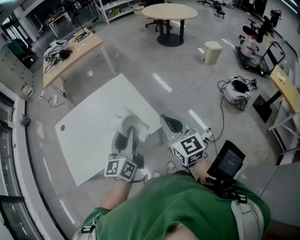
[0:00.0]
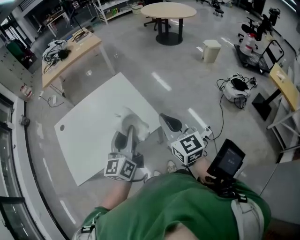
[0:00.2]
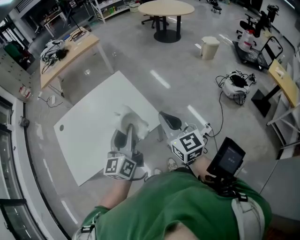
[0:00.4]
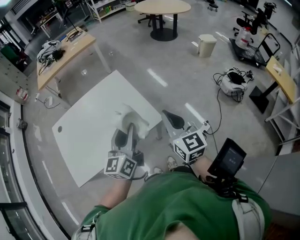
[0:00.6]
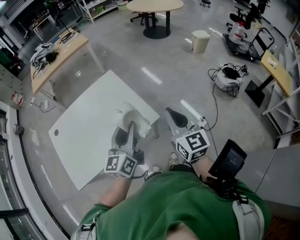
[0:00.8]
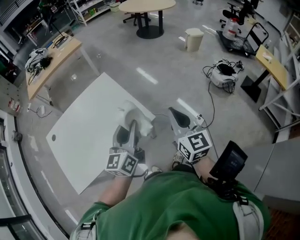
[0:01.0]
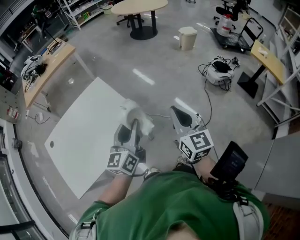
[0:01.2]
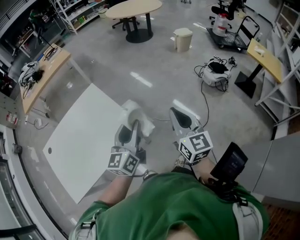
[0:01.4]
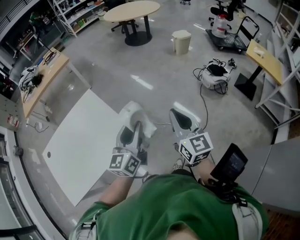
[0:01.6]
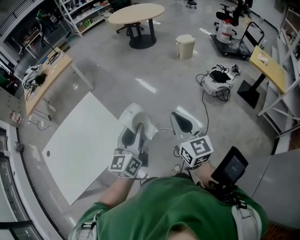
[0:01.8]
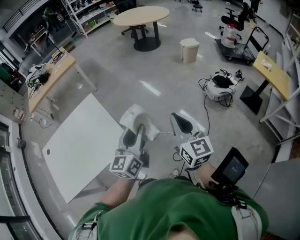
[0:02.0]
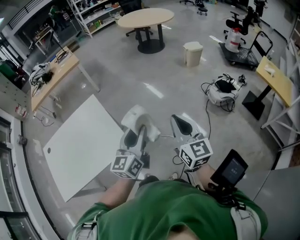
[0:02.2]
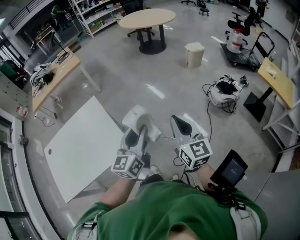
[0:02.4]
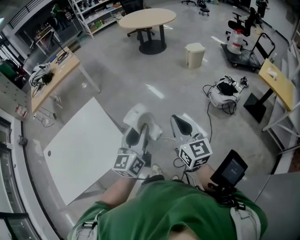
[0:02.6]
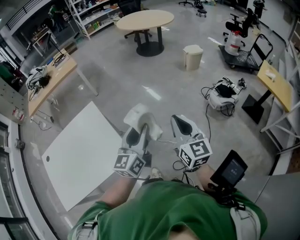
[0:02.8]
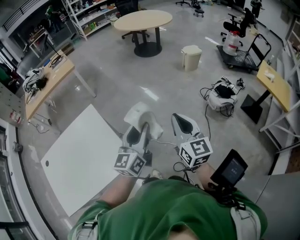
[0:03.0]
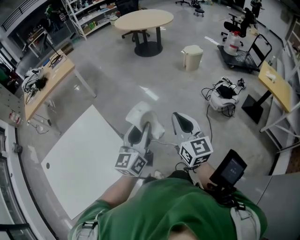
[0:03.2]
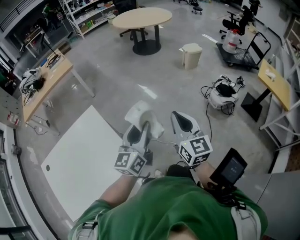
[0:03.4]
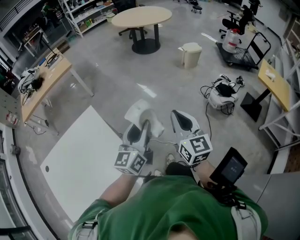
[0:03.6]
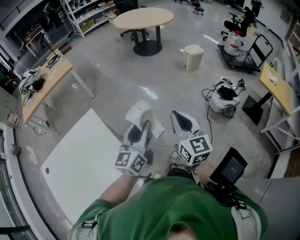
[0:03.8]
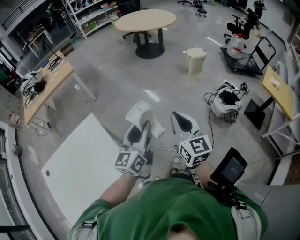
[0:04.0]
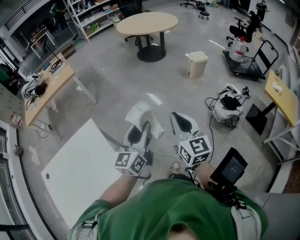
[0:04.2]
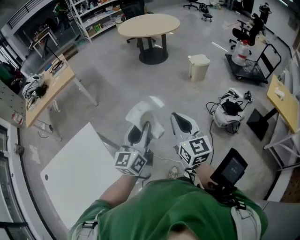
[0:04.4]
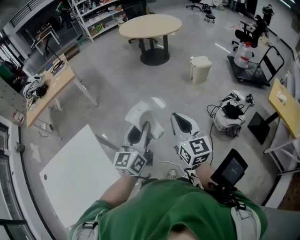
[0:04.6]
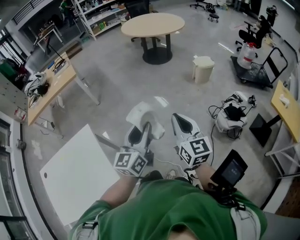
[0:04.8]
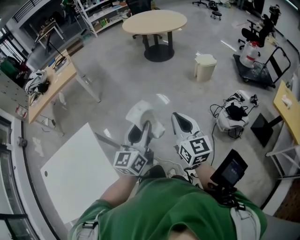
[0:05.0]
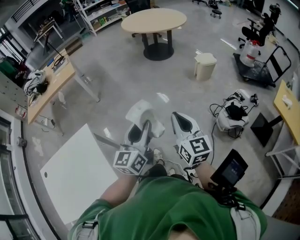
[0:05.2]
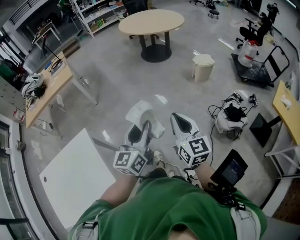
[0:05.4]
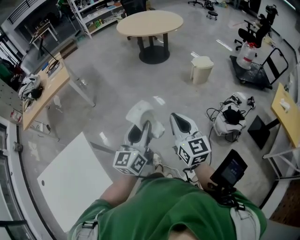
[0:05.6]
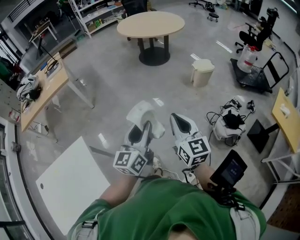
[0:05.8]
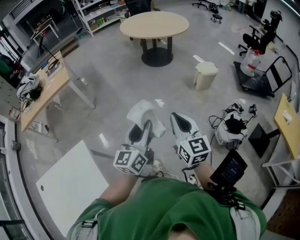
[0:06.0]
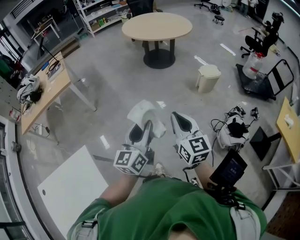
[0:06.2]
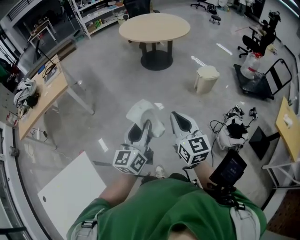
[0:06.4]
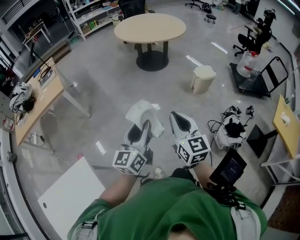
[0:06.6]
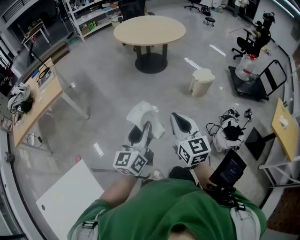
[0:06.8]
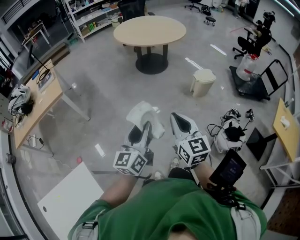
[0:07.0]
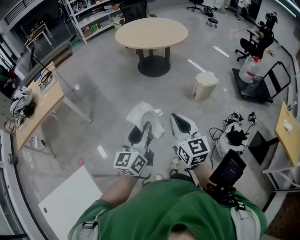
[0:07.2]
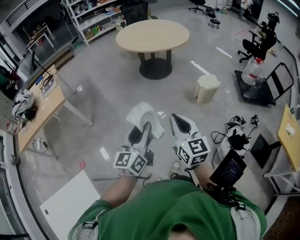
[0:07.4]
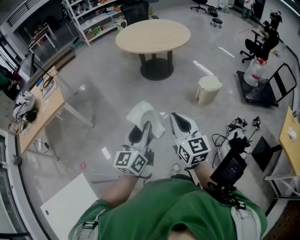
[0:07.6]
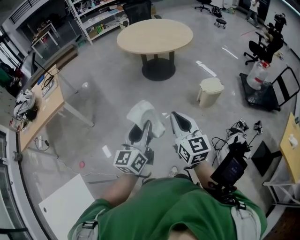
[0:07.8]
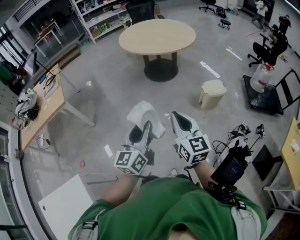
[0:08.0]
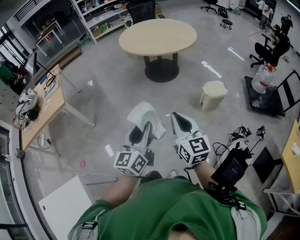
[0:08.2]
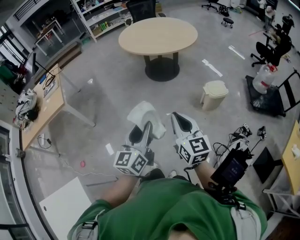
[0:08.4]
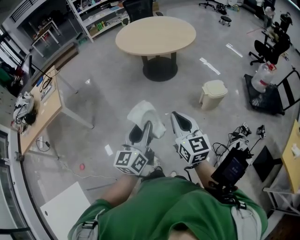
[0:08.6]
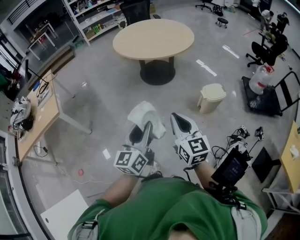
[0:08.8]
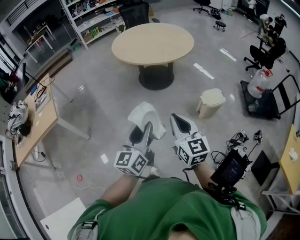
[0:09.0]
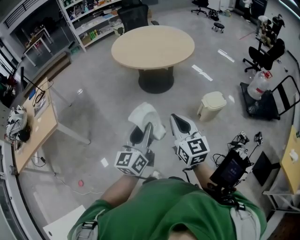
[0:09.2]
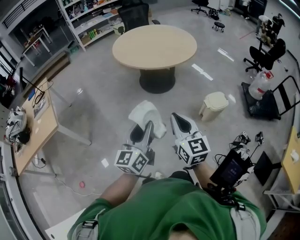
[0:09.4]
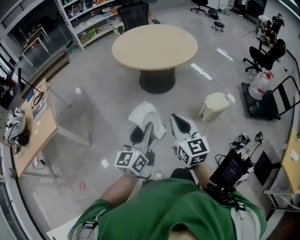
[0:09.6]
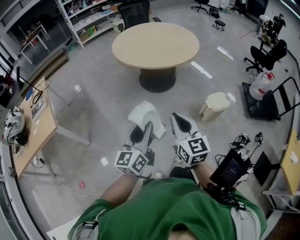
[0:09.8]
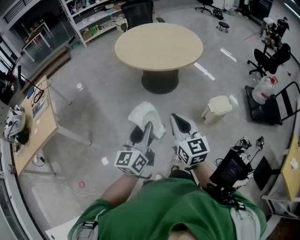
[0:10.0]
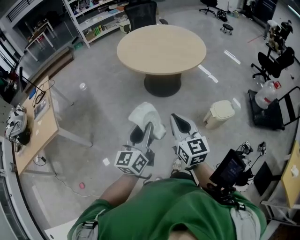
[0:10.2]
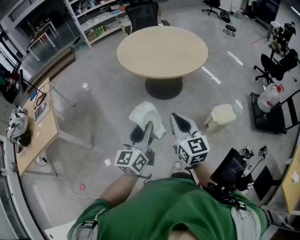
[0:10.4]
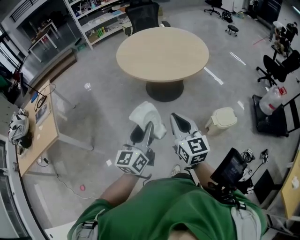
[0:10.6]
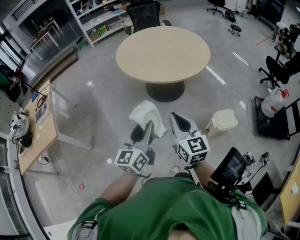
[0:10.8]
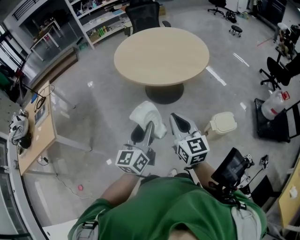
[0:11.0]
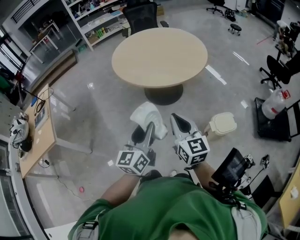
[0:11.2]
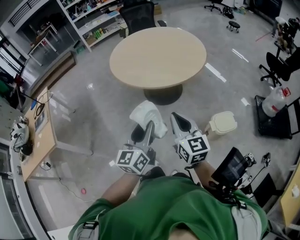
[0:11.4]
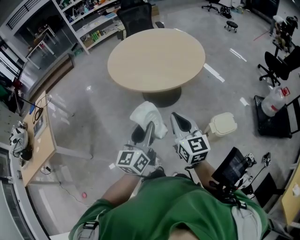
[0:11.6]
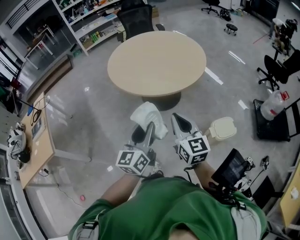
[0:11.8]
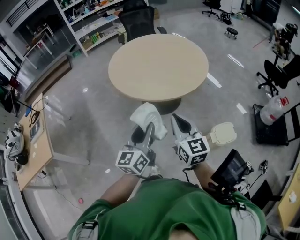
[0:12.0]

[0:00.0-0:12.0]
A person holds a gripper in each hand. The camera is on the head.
0:00.0 to 0:01.6: Both grippers travel together to the right, roughly 20 cm. The right gripper swivels about 20 degrees.
0:01.6 to 0:03.0: The right gripper moves forward, approximately 15 cm; the left gripper is displaced forward and to the right by roughly 15 cm.
0:03.0 to 0:04.4: Both grippers travel together forward, about 15 cm.
0:04.4 to 0:06.0: Both grippers travel together forward, approximately 20 cm.
0:06.0 to 0:07.6: The grippers both shift forward by about 20 cm.
0:07.6 to 0:09.0: Both grippers move forward, approximately 20 cm.
0:09.0 to 0:10.4: Both grippers move forward, roughly 20 cm.
0:10.4 to 0:12.0: The two grippers go some 20 cm forward and to the right.

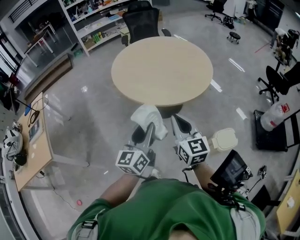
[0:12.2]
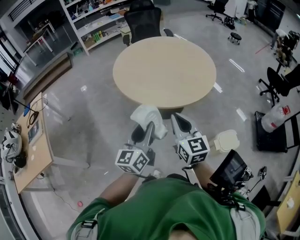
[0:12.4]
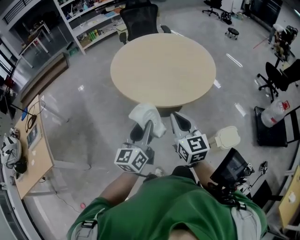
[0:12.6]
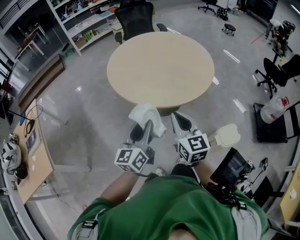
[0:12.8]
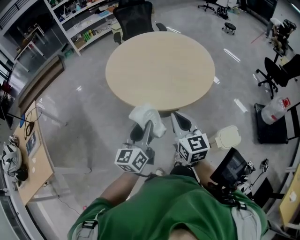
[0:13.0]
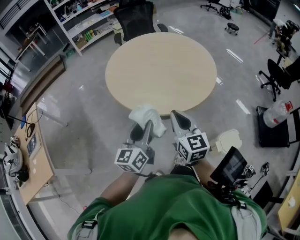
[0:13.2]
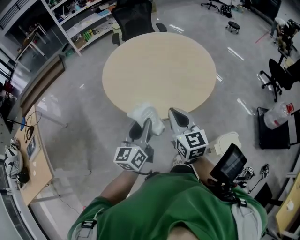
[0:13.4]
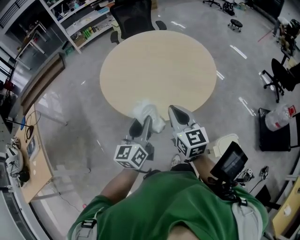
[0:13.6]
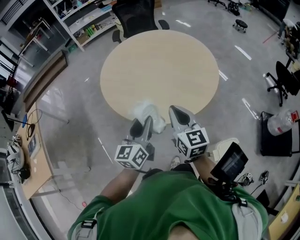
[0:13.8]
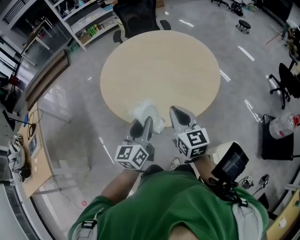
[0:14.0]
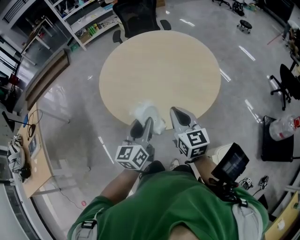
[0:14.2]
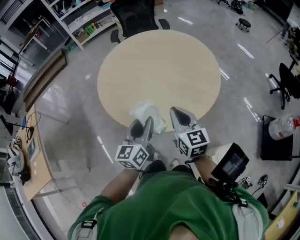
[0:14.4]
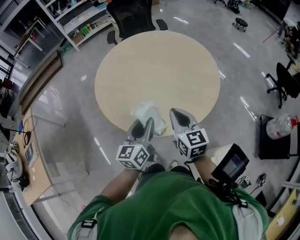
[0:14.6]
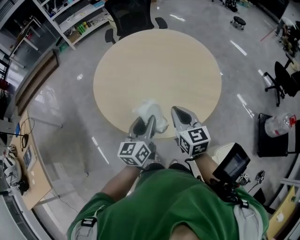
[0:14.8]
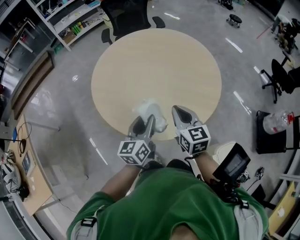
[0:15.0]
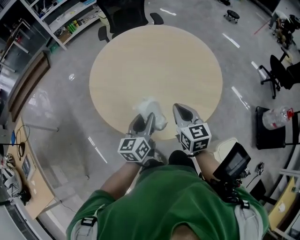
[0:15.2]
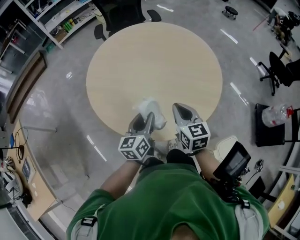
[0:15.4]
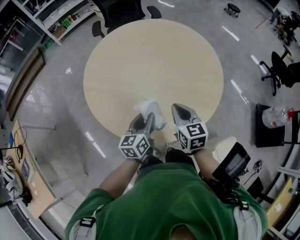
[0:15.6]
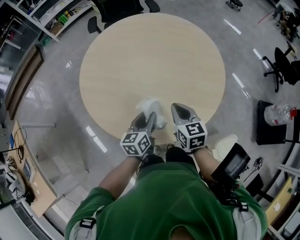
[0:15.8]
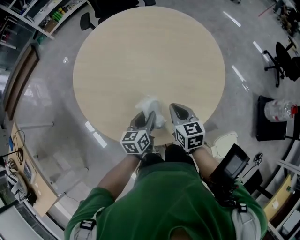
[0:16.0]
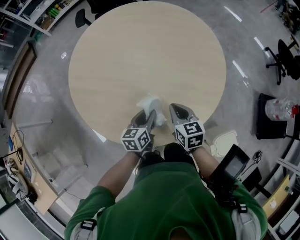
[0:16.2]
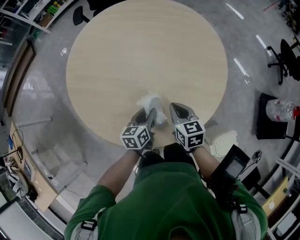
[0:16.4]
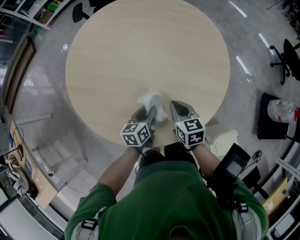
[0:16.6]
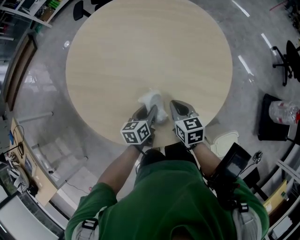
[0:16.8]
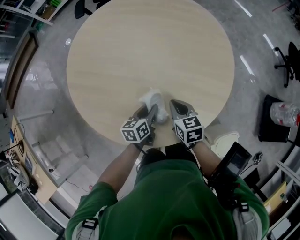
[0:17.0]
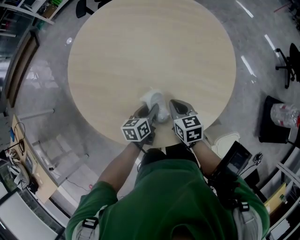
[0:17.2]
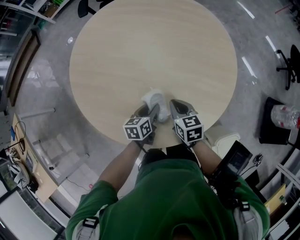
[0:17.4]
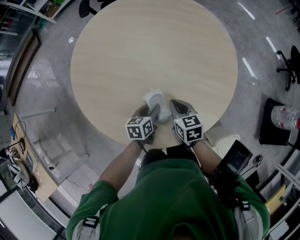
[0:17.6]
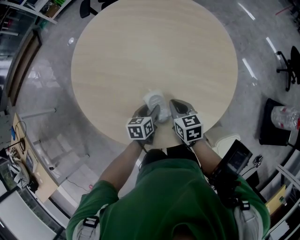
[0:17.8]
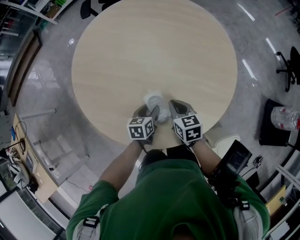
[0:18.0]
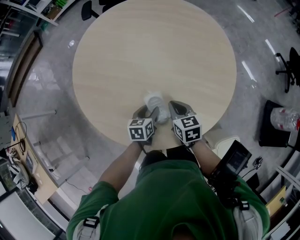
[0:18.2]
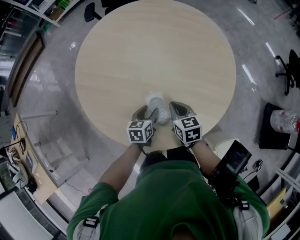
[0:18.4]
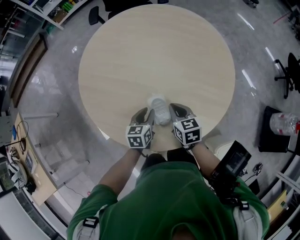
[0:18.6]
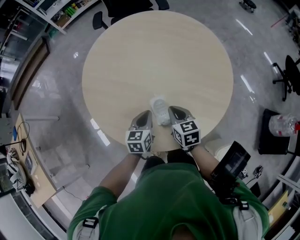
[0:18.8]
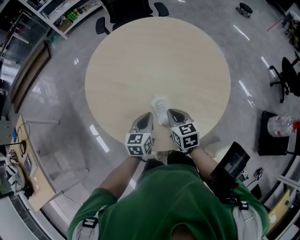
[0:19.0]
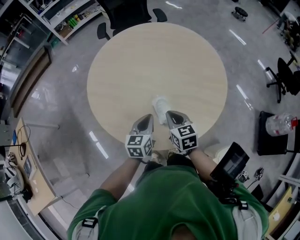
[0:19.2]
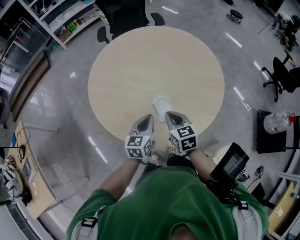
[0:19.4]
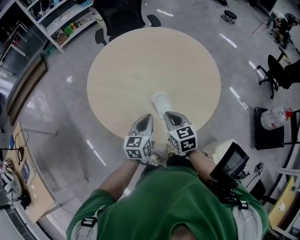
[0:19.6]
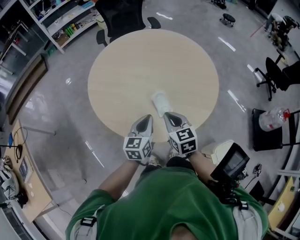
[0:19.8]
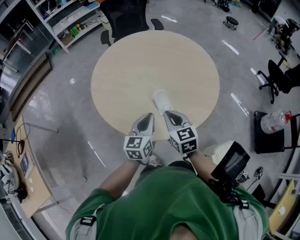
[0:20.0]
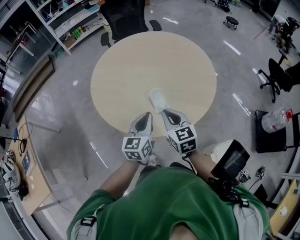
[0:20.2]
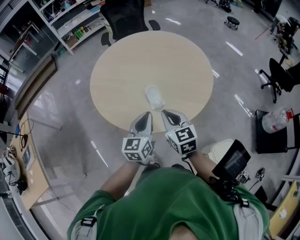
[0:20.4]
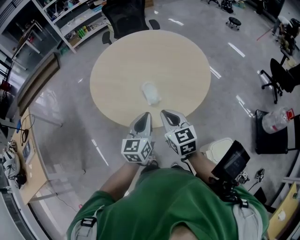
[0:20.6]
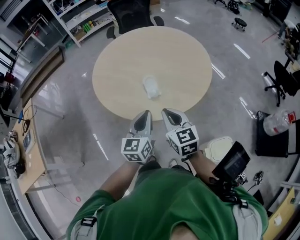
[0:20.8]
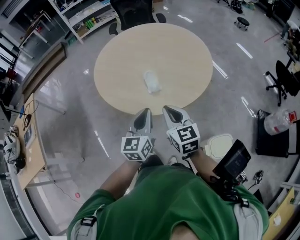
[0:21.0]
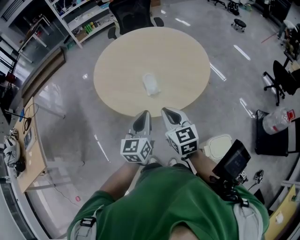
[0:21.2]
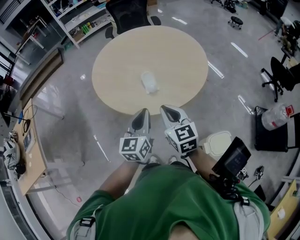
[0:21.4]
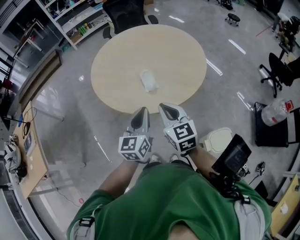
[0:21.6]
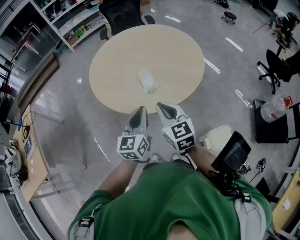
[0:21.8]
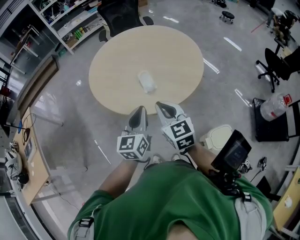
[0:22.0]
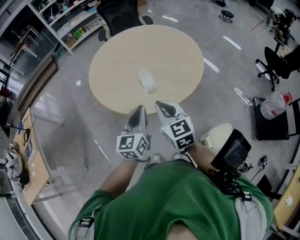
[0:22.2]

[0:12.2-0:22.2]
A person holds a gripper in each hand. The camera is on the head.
0:12.2 to 0:13.6: Both grippers travel together forward, approximately 20 cm.
0:13.6 to 0:15.0: The grippers both shift forward by some 15 cm.
0:15.0 to 0:16.4: Both grippers move downward and forward, approximately 20 cm. The left gripper swivels approximately 30 degrees. The right gripper swivels about 20 degrees.
0:16.4 to 0:18.0: The right gripper changes place by roughly 5 cm. The left gripper travels downward by about 5 cm.
0:18.0 to 0:19.4: The left gripper is displaced upward by roughly 15 cm, swivels some 30 degrees, and closes its fingers. The right gripper moves upward, backward and to the left, about 15 cm.
0:19.4 to 0:20.8: The left gripper moves backward, upward and to the right, about 20 cm, while the right gripper travels backward and upward by about 20 cm.
0:20.8 to 0:22.2: The right gripper changes place by approximately 5 cm; the left gripper moves some 5 cm.

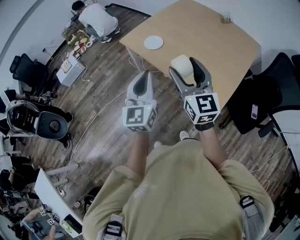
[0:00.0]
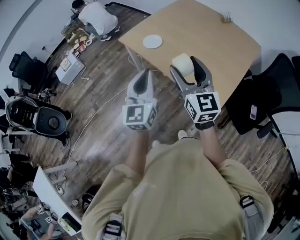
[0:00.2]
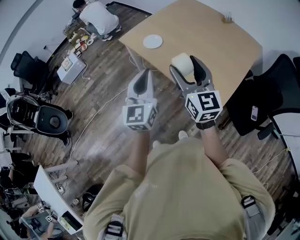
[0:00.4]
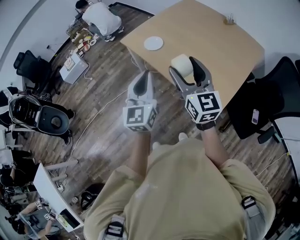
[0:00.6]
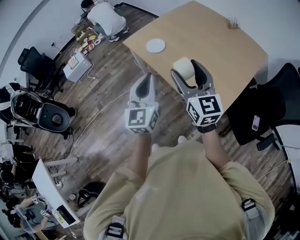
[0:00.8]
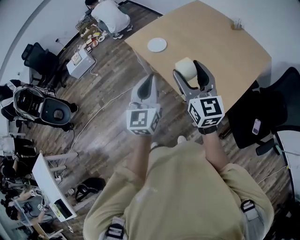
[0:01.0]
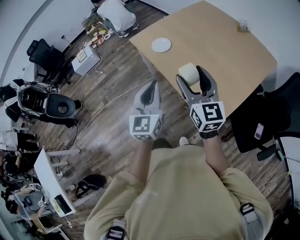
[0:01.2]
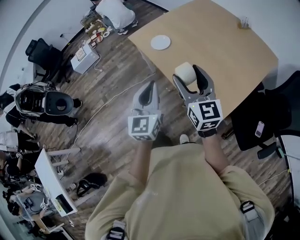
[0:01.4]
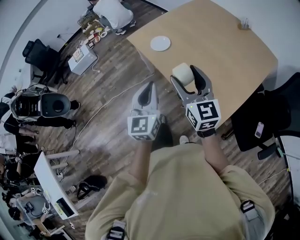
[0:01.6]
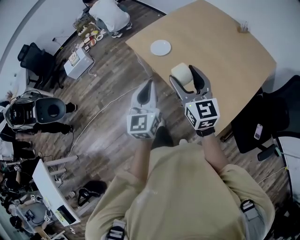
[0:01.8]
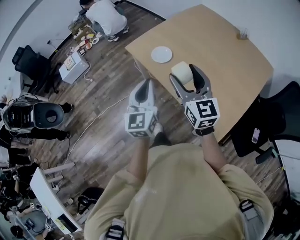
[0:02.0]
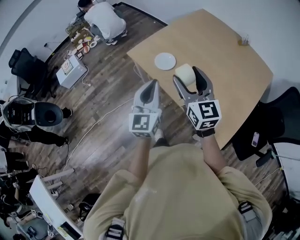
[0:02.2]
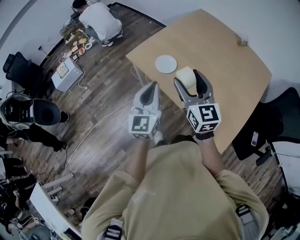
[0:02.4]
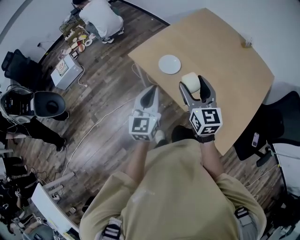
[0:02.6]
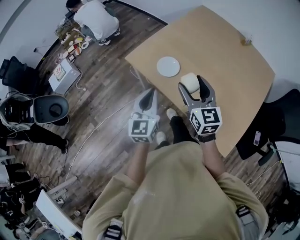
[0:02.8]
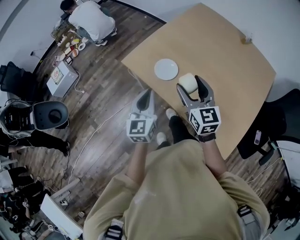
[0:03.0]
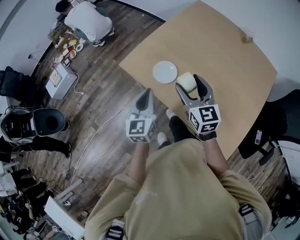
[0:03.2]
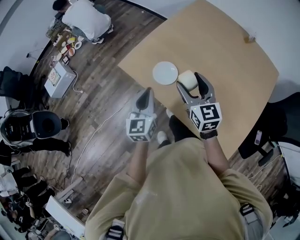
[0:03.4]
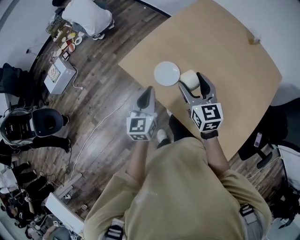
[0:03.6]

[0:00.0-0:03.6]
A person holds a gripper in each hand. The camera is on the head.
0:00.0 to 0:01.8: Both grippers travel together forward and downward, approximately 10 cm. The left gripper goes to the right and returns, some 10 cm each way.
0:01.8 to 0:03.6: Both grippers travel together forward, roughly 30 cm.
